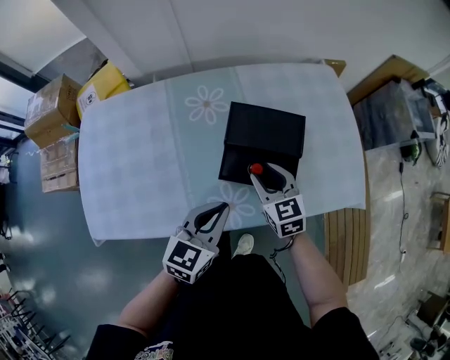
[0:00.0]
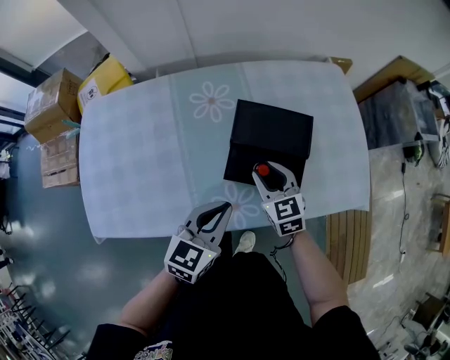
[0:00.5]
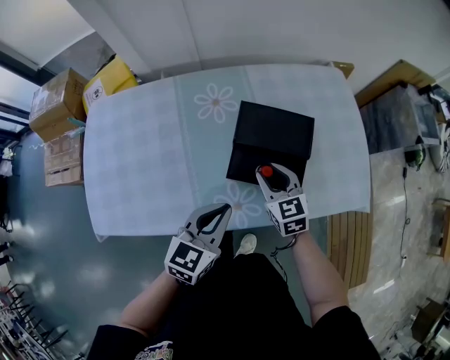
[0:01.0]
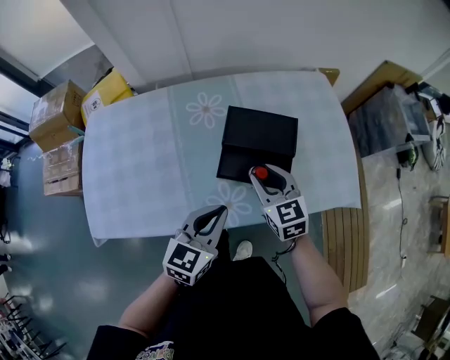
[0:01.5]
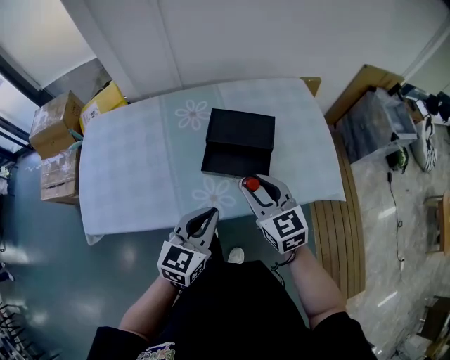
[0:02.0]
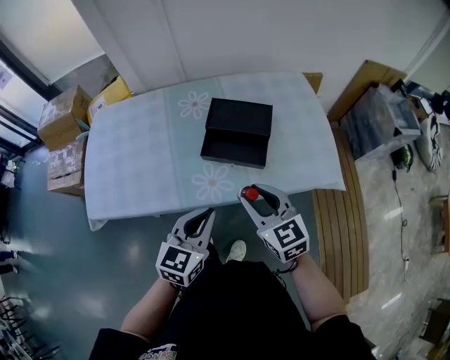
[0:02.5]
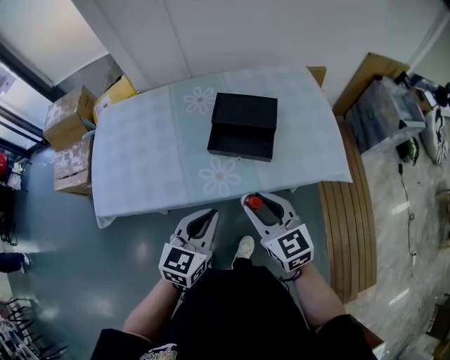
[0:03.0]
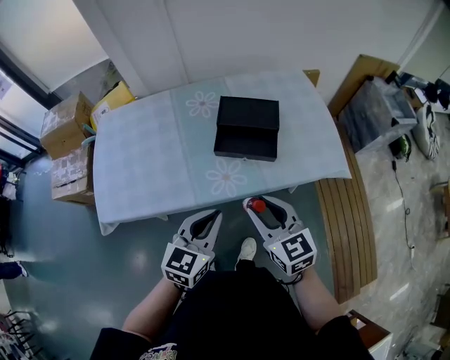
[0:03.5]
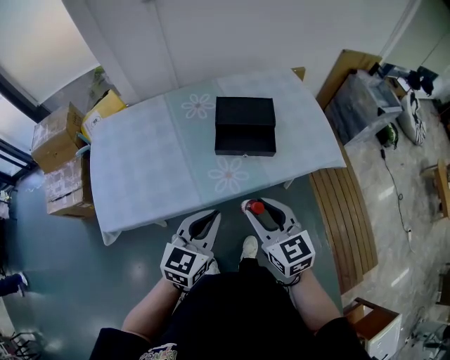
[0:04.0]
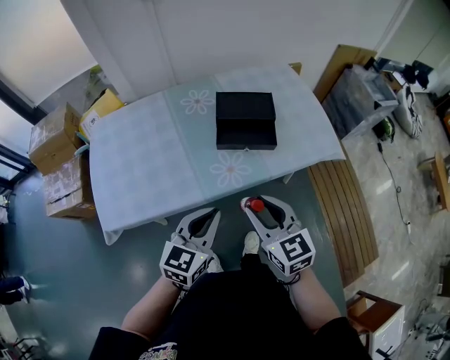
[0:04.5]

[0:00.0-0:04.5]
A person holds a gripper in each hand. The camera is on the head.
0:00.0 to 0:02.0: The right gripper shifts roughly 15 cm upward and backward. The left gripper shifts some 10 cm backward.
0:02.0 to 0:04.5: The grippers both shift backward and to the left by approximately 15 cm.

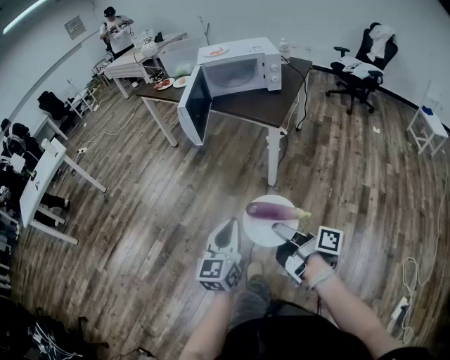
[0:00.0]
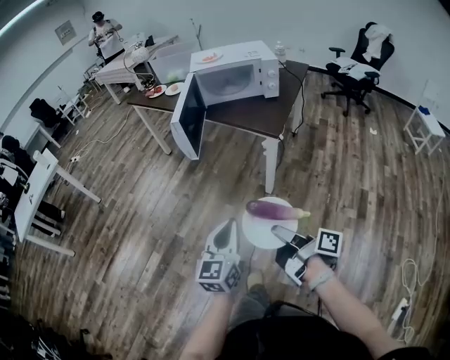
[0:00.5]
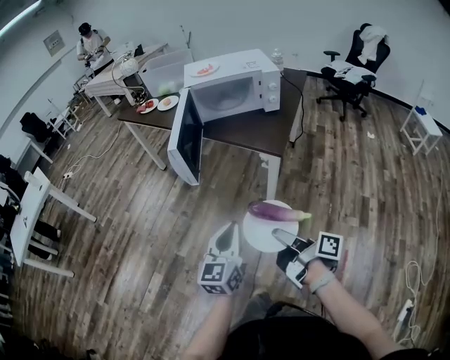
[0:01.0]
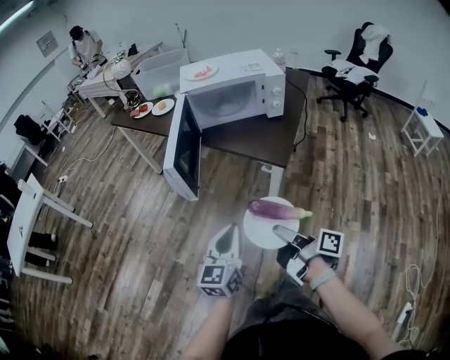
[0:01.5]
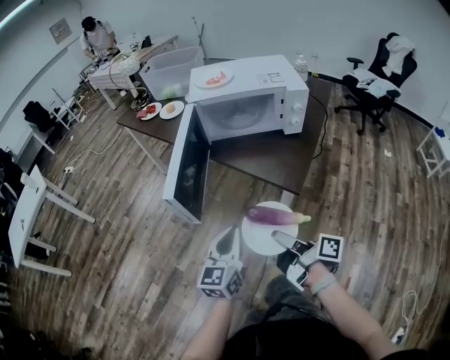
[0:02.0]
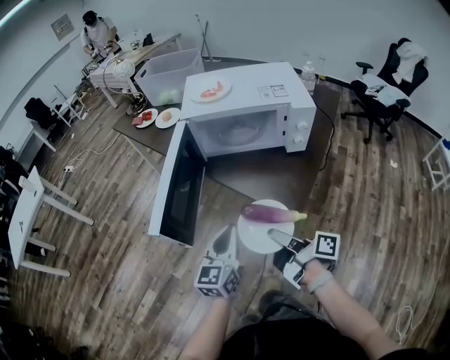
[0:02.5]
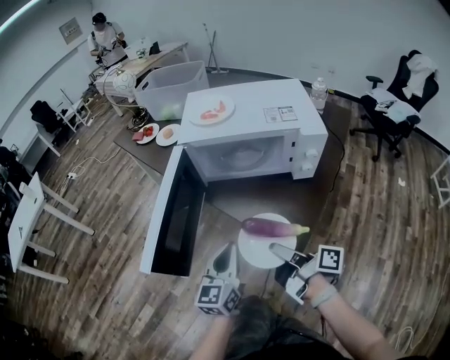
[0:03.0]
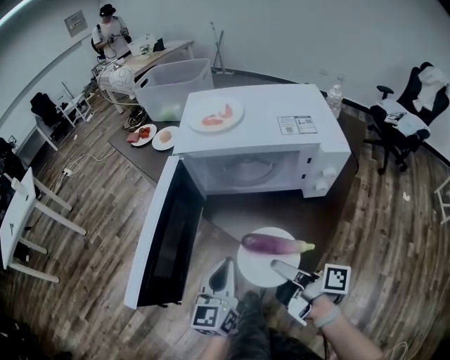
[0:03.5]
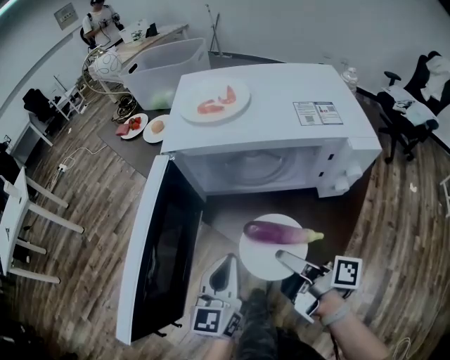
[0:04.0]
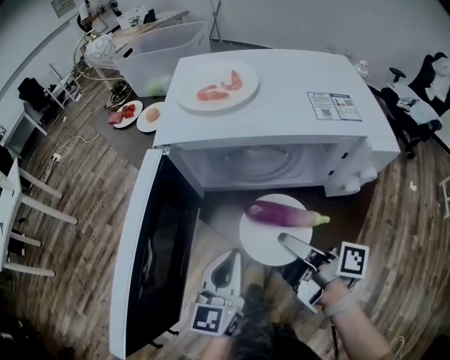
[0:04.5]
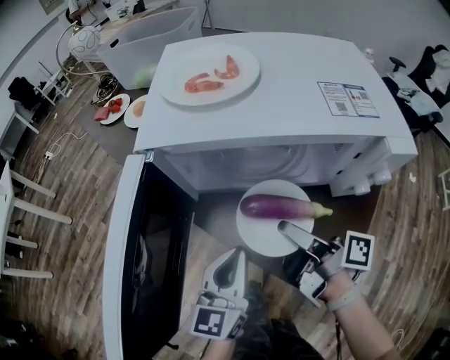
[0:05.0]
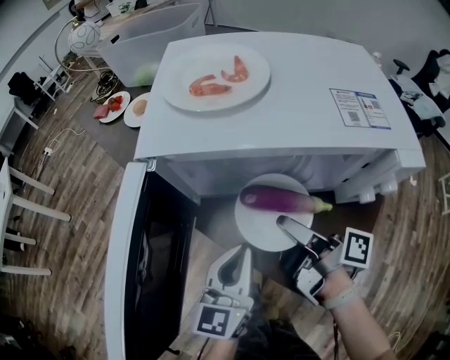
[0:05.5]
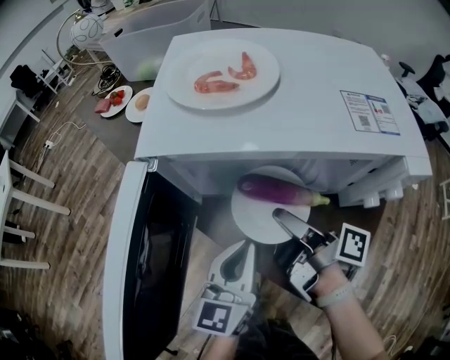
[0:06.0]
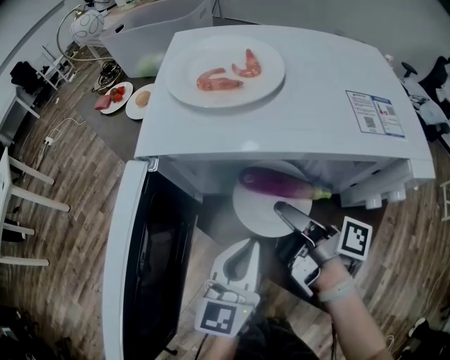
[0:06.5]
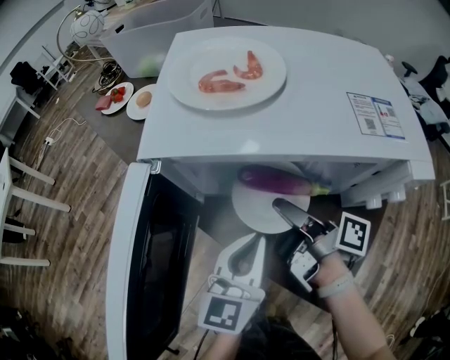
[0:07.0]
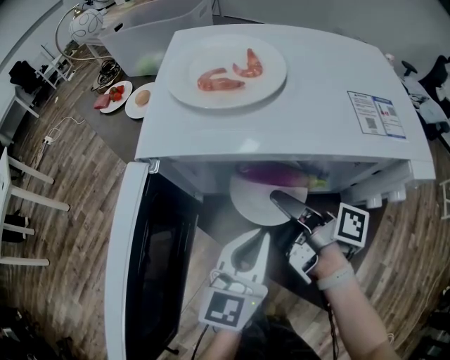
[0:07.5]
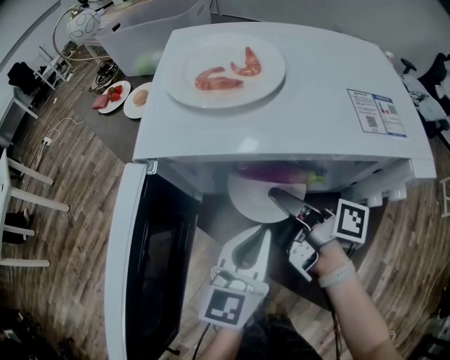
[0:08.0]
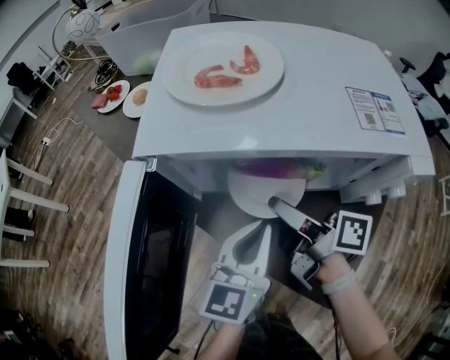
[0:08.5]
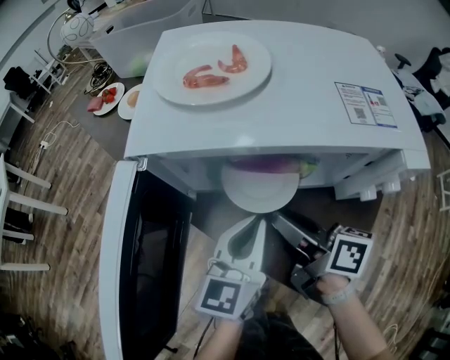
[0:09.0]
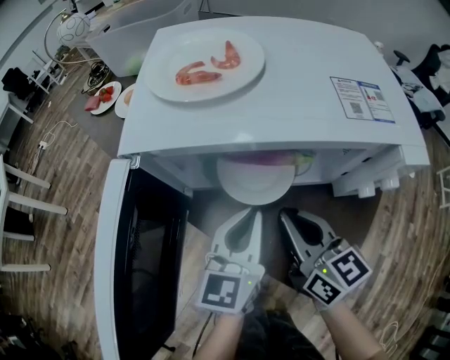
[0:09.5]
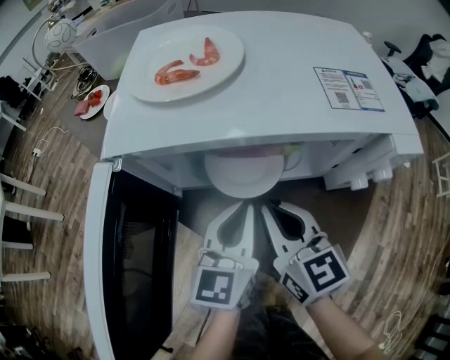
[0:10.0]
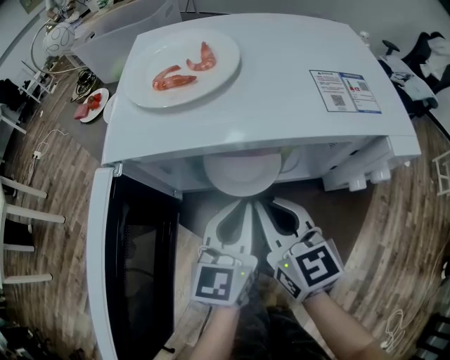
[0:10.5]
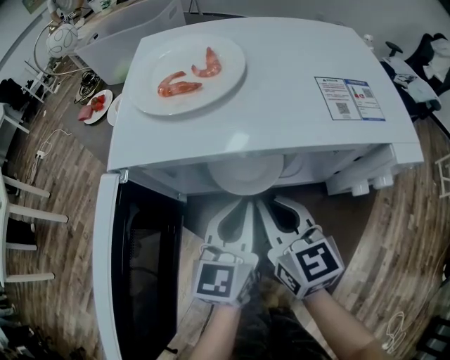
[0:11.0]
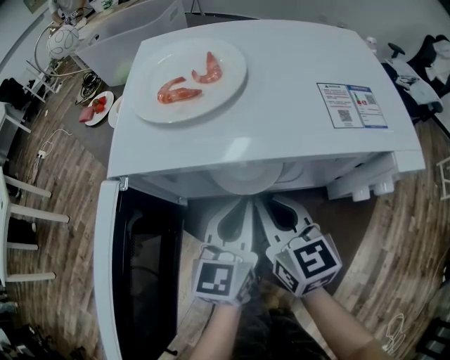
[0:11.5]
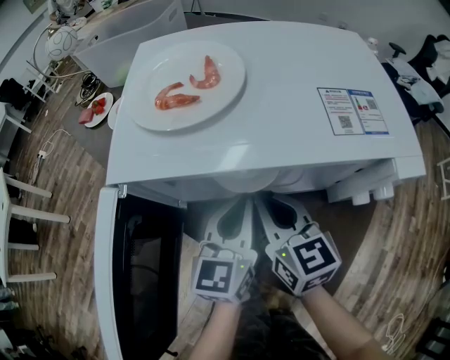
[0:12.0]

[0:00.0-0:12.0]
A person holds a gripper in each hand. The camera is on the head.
0:00.0 to 0:02.0: The two grippers go approximately 35 cm forward.
0:02.0 to 0:04.0: Both grippers travel together forward, about 25 cm.
0:04.0 to 0:06.0: The left gripper travels forward by approximately 5 cm, while the right gripper travels forward by roughly 15 cm.
0:06.0 to 0:08.0: There are only small adjustments of the grippers.
0:08.0 to 0:10.0: The right gripper ends up some 5 cm from where it was, twists about 70 degrees counterclockwise, seen from behind, and opens and closes again.
0:10.0 to 0:12.0: The grippers stay close to where they were, moving slightly.

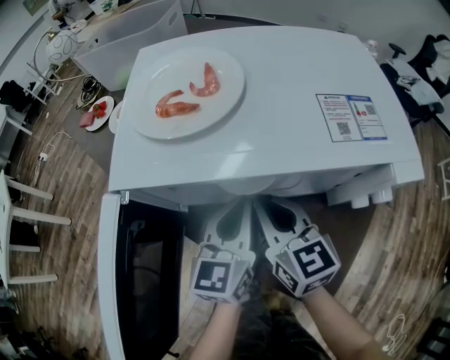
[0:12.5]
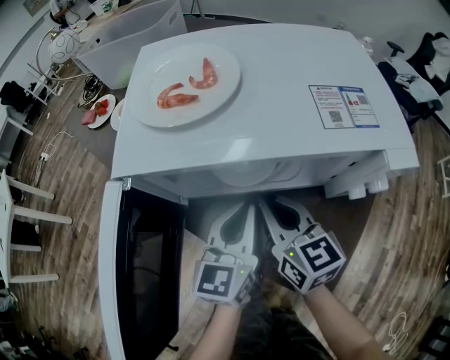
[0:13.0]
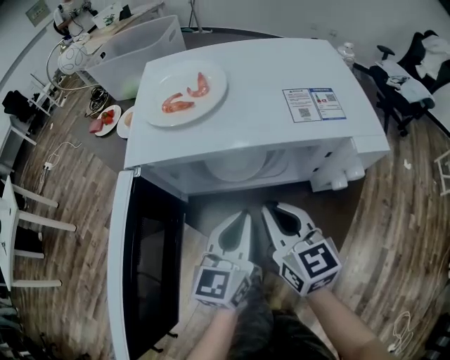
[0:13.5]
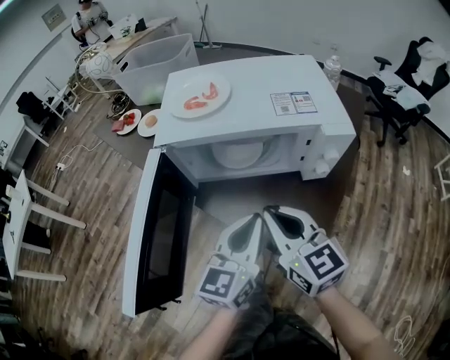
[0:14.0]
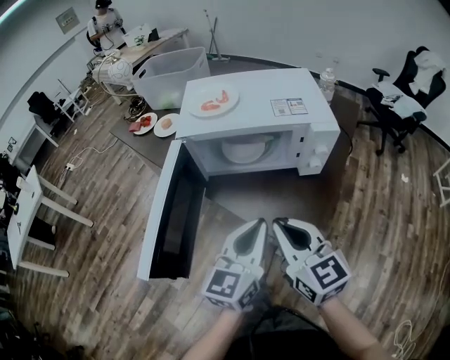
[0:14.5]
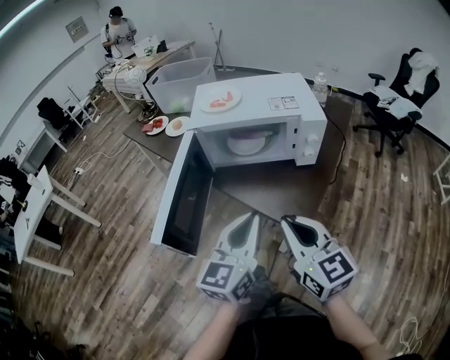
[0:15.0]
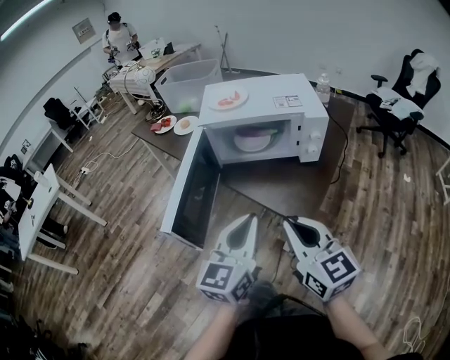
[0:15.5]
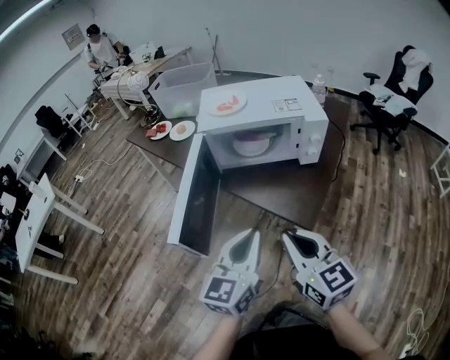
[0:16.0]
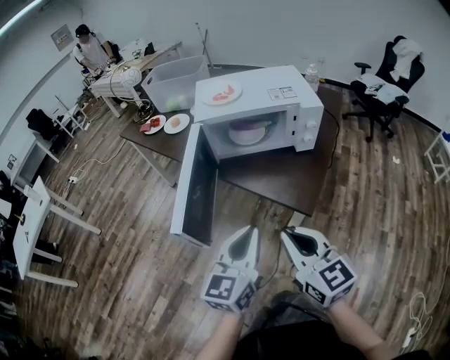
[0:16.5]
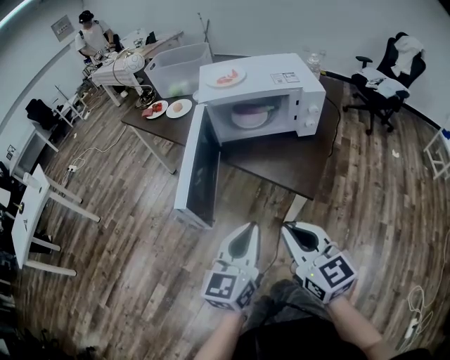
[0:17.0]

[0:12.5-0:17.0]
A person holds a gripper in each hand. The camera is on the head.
0:12.5 to 0:14.5: The grippers both shift backward and upward by about 25 cm.
0:14.5 to 0:17.0: The left gripper goes some 20 cm backward and to the left. Meanwhile the right gripper heads backward, covering approximately 20 cm.

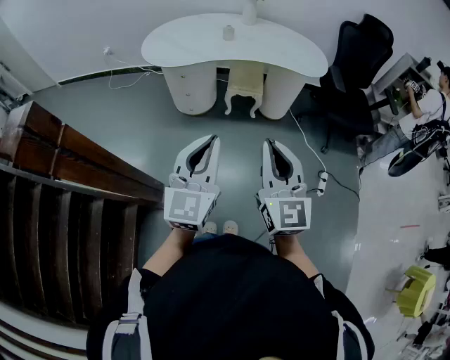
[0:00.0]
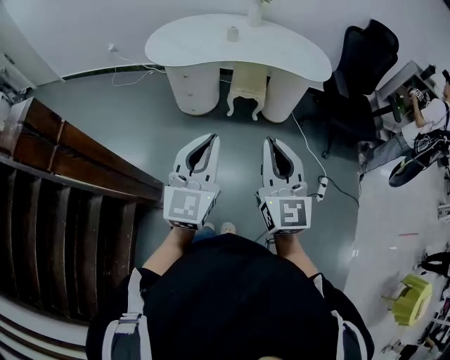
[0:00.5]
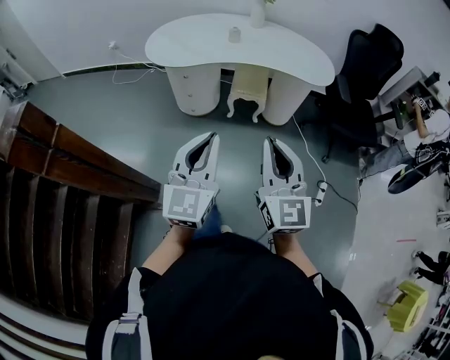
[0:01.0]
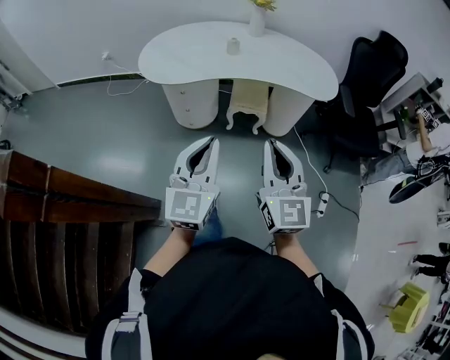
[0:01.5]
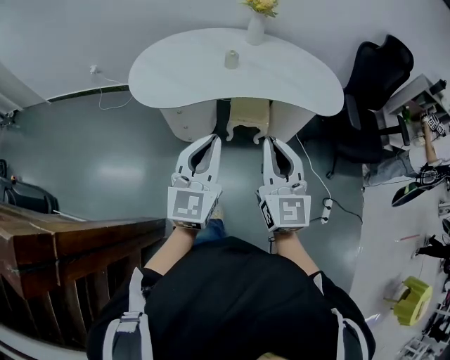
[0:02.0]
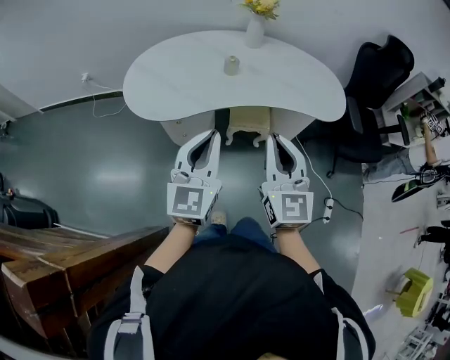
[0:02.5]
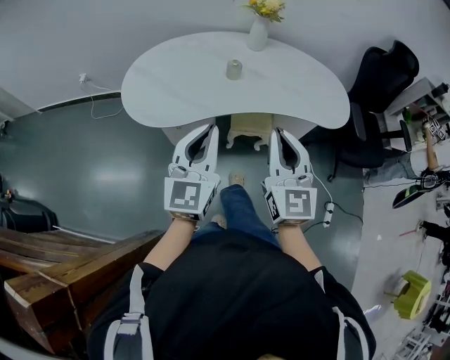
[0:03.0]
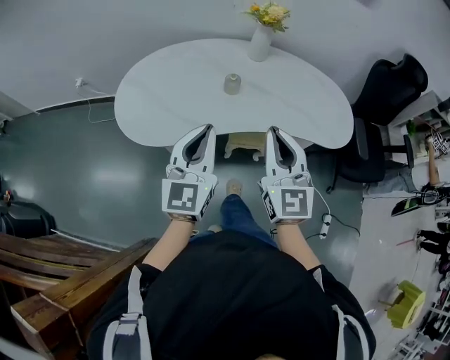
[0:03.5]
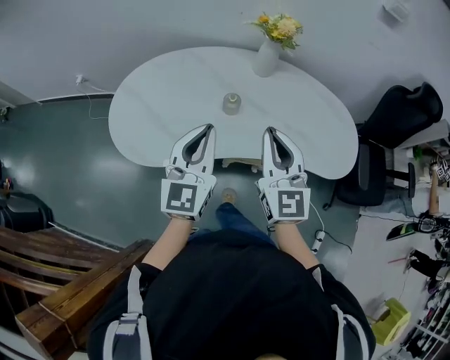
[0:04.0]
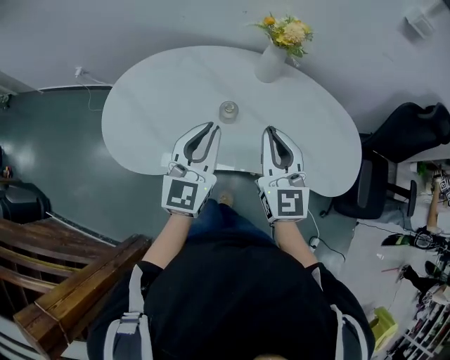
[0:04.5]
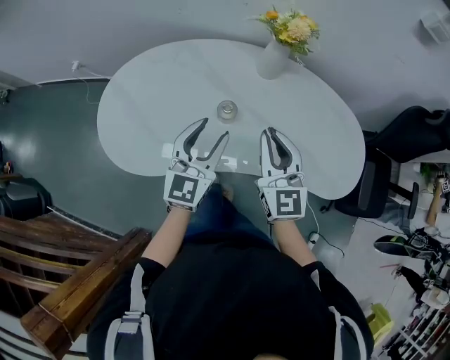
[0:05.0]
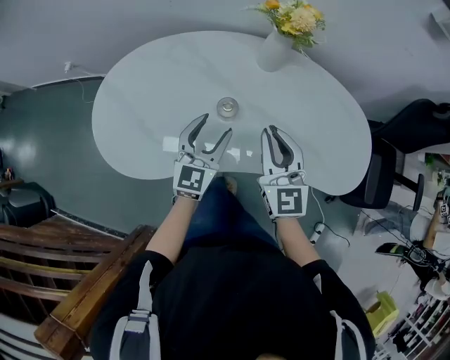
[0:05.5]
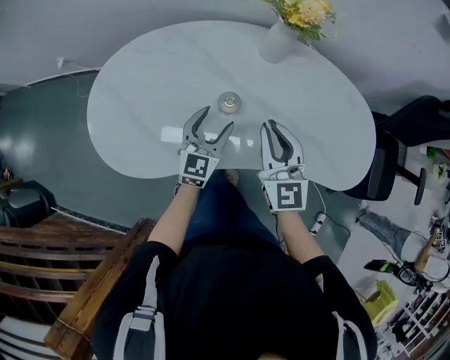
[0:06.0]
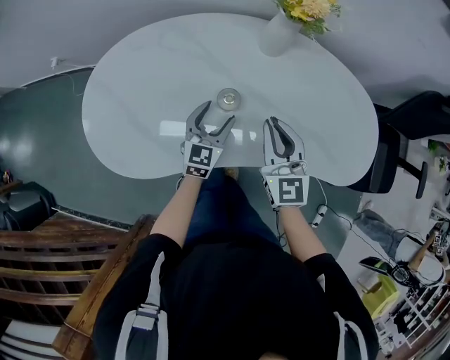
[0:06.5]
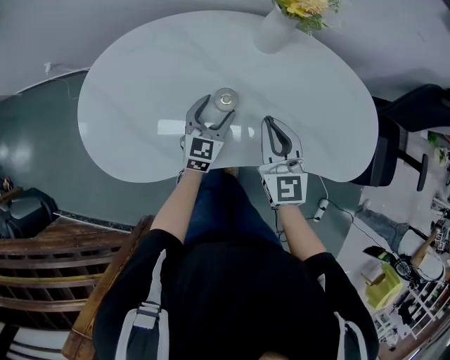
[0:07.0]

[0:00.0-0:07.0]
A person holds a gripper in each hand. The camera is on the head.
0:00.0 to 0:02.0: The grippers both shift forward by some 30 cm.
0:02.0 to 0:03.5: The two grippers go some 25 cm forward.
0:03.5 to 0:05.0: The left gripper moves forward and downward, roughly 25 cm, and opens its fingers. Meanwhile the right gripper shifts some 20 cm forward.
0:05.0 to 0:07.0: The right gripper goes about 10 cm downward; the left gripper moves downward and forward, about 20 cm.
